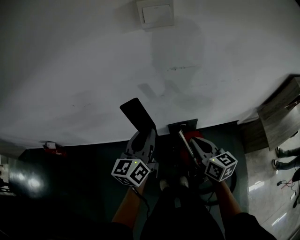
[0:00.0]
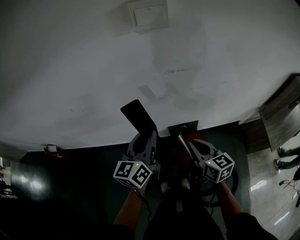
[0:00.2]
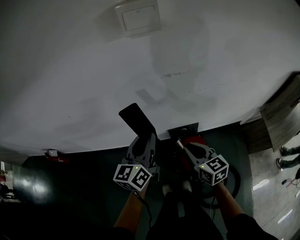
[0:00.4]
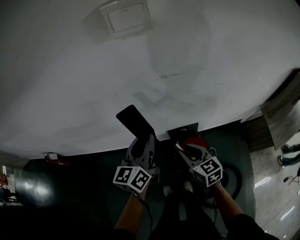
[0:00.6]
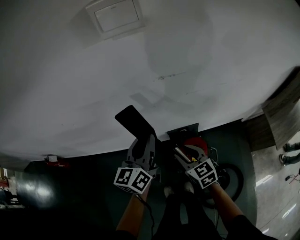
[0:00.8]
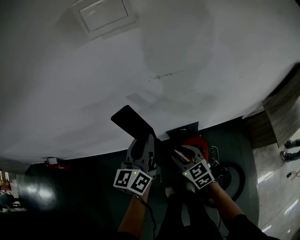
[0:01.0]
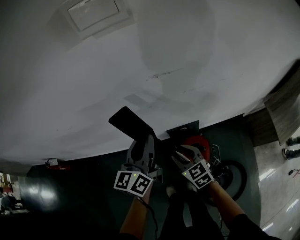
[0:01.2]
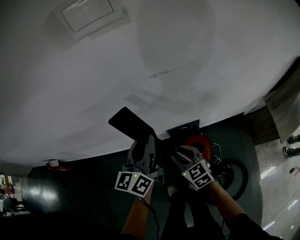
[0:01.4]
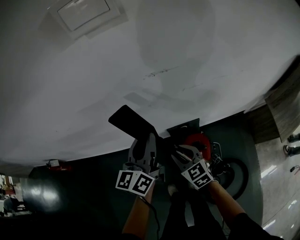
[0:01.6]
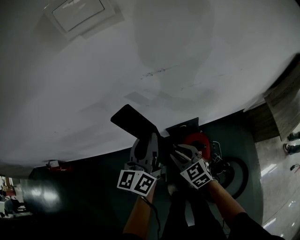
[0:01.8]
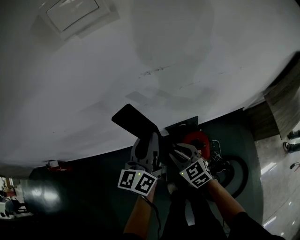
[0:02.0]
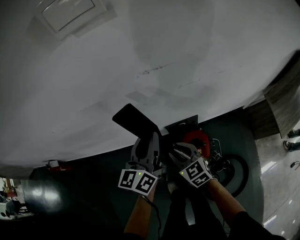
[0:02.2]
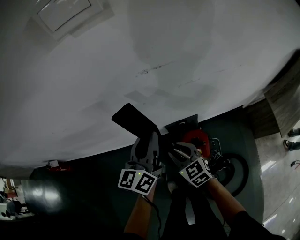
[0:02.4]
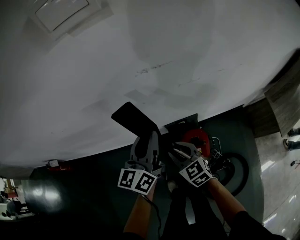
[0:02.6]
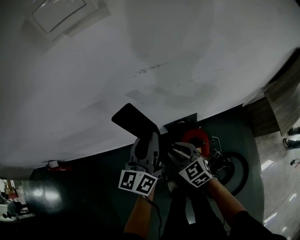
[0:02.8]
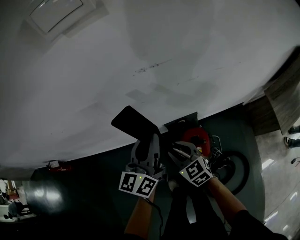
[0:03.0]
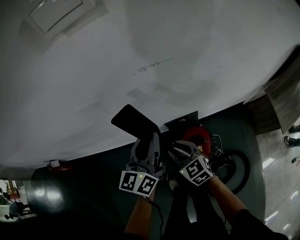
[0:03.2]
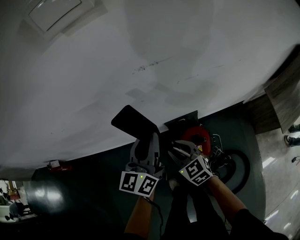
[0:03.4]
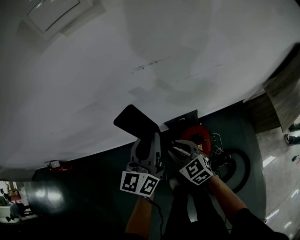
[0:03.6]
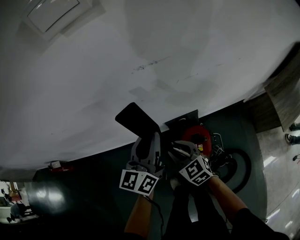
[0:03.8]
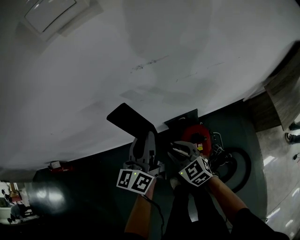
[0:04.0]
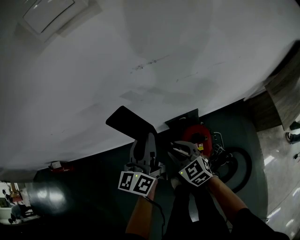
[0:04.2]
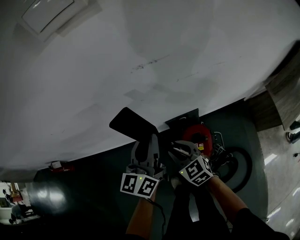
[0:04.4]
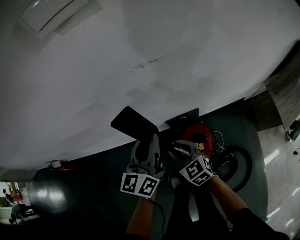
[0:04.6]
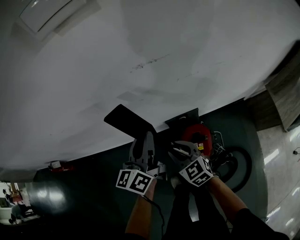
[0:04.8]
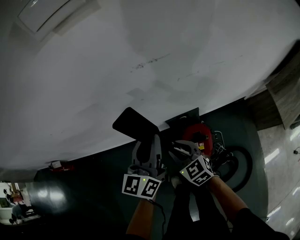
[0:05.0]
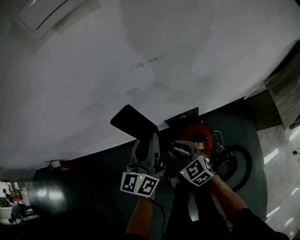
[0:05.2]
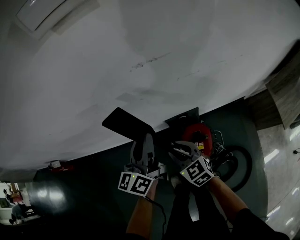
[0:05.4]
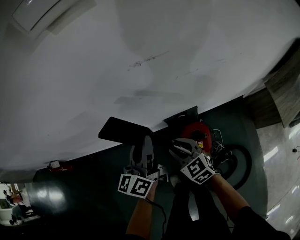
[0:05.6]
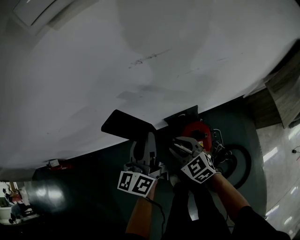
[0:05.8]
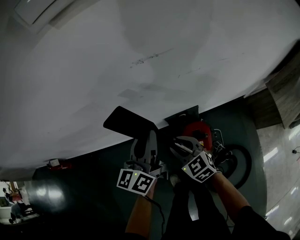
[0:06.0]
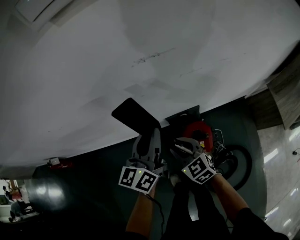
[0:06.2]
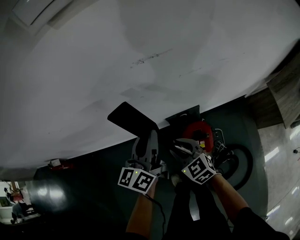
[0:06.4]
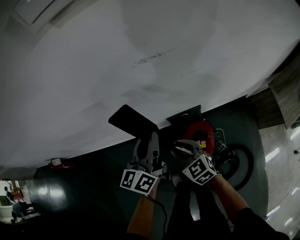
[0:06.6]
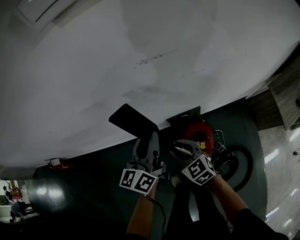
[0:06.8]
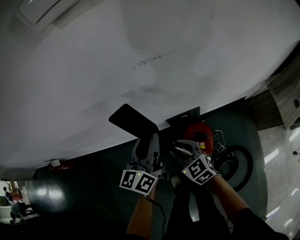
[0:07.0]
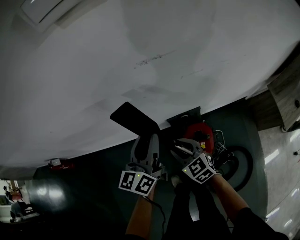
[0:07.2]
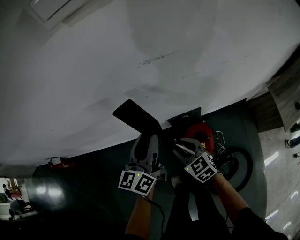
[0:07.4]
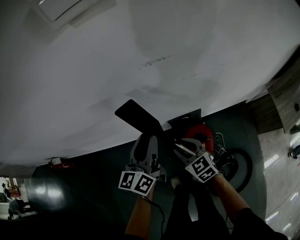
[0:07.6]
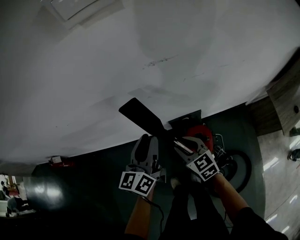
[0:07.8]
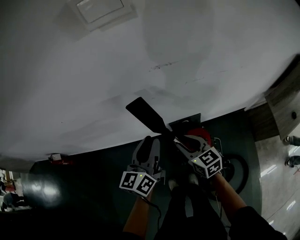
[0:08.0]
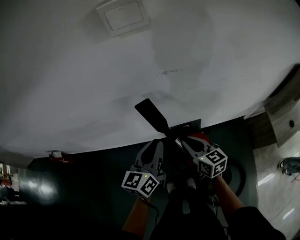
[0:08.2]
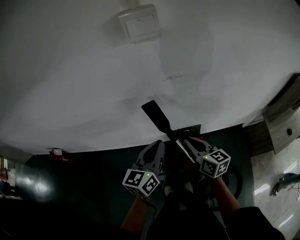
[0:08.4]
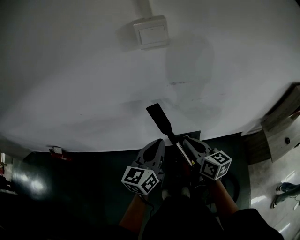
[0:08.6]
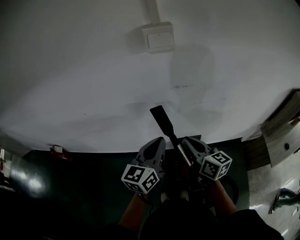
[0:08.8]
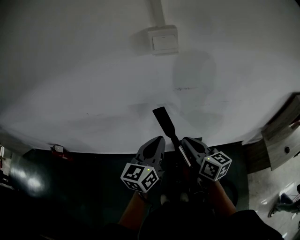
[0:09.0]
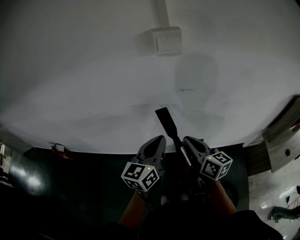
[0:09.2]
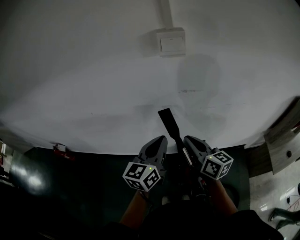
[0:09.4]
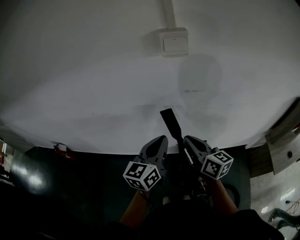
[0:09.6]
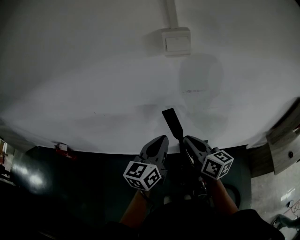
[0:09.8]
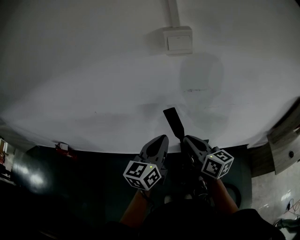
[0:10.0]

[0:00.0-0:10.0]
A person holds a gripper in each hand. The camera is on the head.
0:00.0 to 0:01.4: The right gripper heads downward, covering some 15 cm, turns by approximately 30 degrees, and opens. Meanwhile the left gripper goes approximately 10 cm forward, downward and to the right.
0:01.4 to 0:07.2: The grippers move only a little.
0:07.2 to 0:08.6: The right gripper shifts some 20 cm upward, changes its angle by some 40 degrees, and closes up. The left gripper moves upward and backward, about 15 cm, and closes its fingers.
0:08.6 to 0:10.0: The right gripper is displaced upward and to the left by approximately 5 cm; the left gripper changes place by about 5 cm.

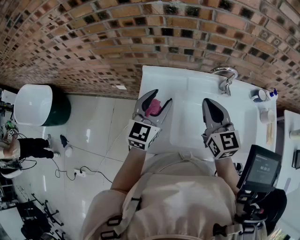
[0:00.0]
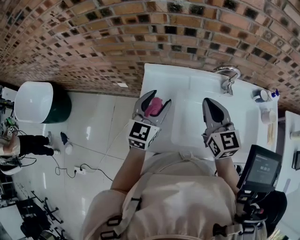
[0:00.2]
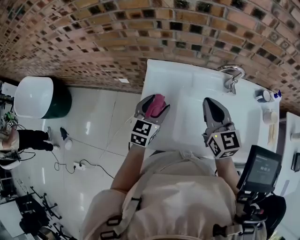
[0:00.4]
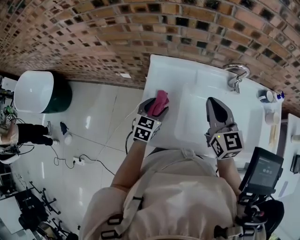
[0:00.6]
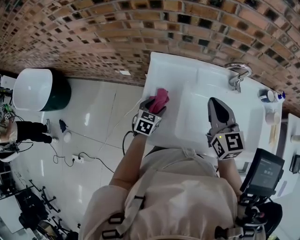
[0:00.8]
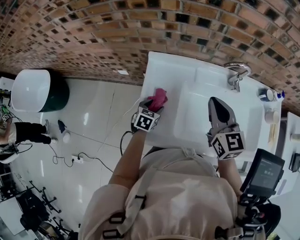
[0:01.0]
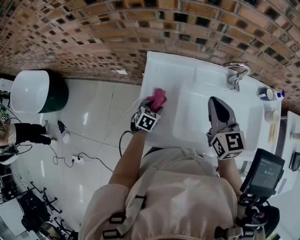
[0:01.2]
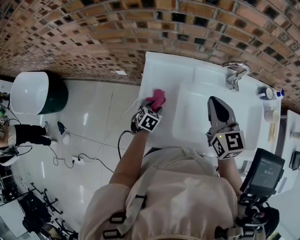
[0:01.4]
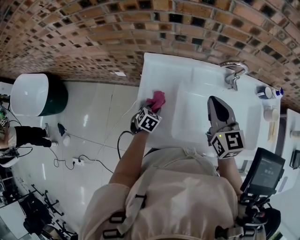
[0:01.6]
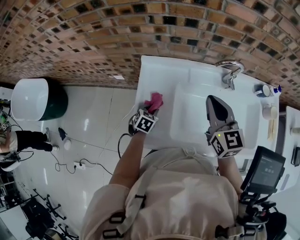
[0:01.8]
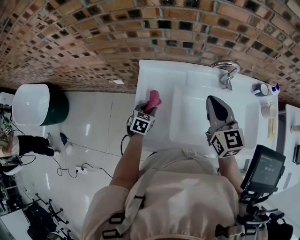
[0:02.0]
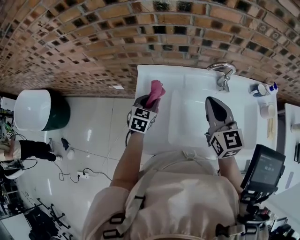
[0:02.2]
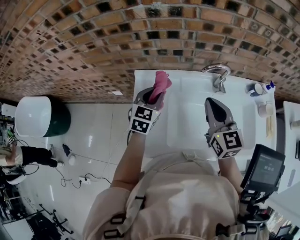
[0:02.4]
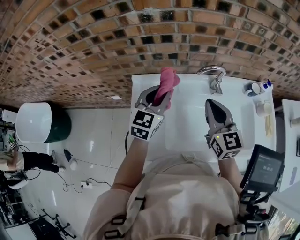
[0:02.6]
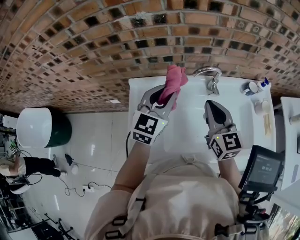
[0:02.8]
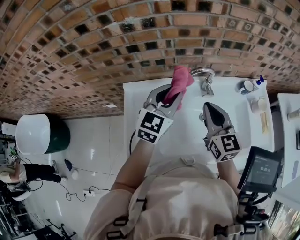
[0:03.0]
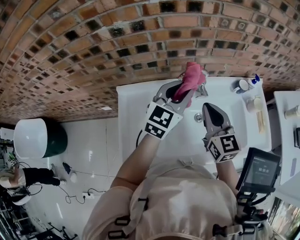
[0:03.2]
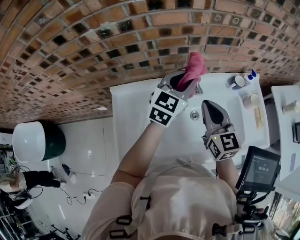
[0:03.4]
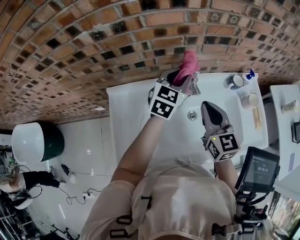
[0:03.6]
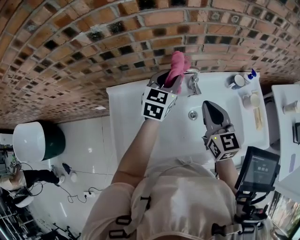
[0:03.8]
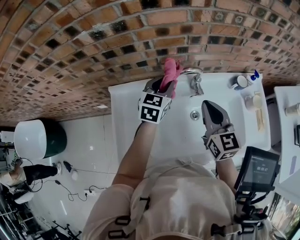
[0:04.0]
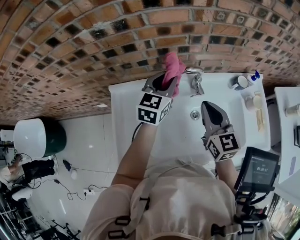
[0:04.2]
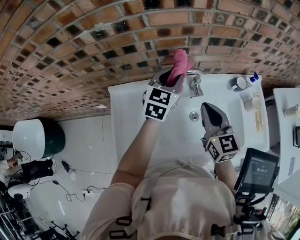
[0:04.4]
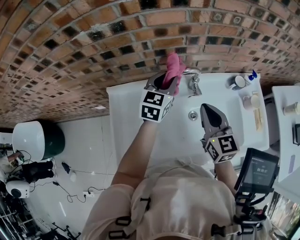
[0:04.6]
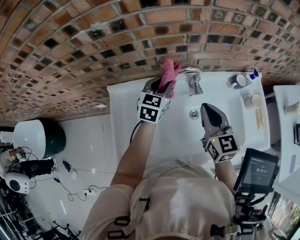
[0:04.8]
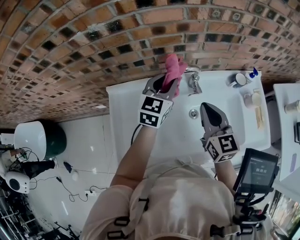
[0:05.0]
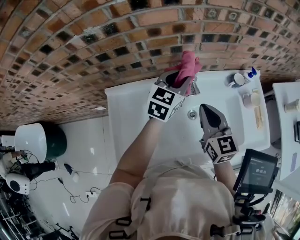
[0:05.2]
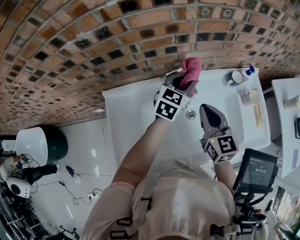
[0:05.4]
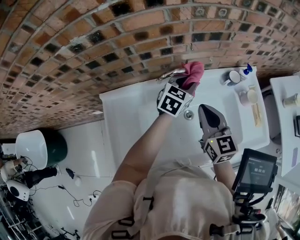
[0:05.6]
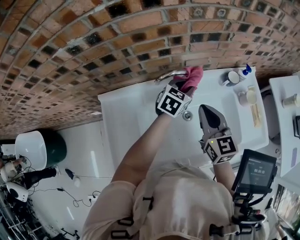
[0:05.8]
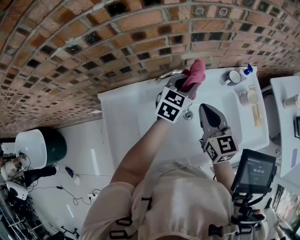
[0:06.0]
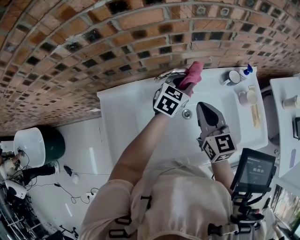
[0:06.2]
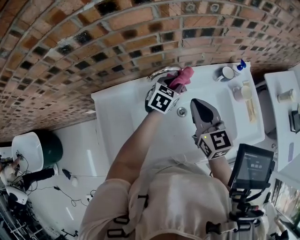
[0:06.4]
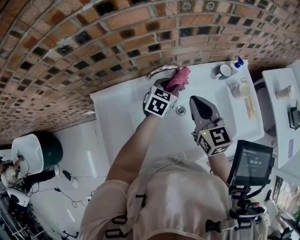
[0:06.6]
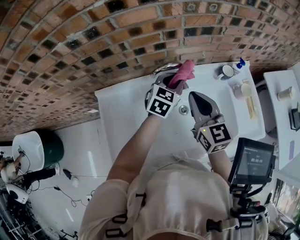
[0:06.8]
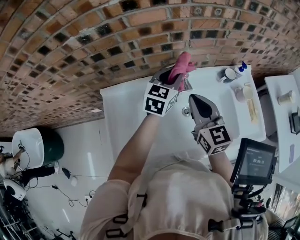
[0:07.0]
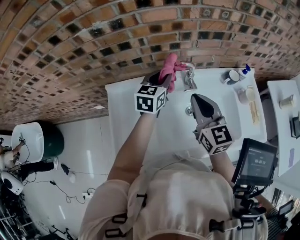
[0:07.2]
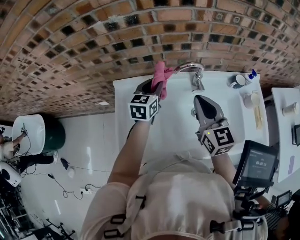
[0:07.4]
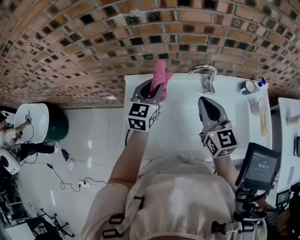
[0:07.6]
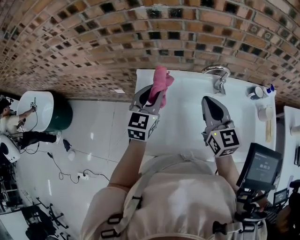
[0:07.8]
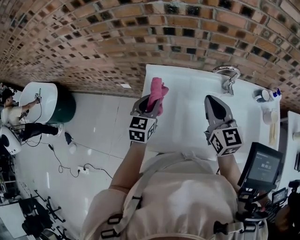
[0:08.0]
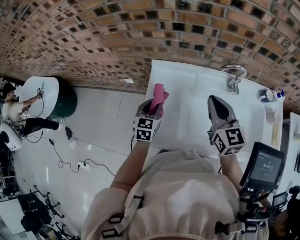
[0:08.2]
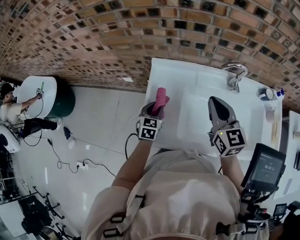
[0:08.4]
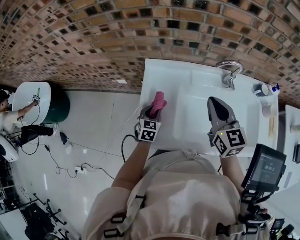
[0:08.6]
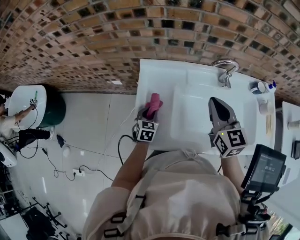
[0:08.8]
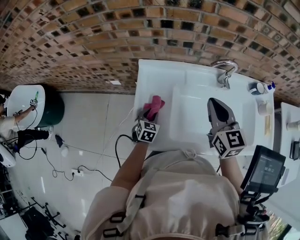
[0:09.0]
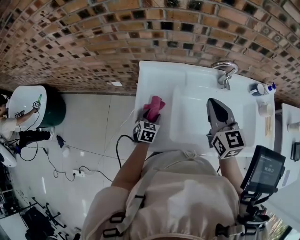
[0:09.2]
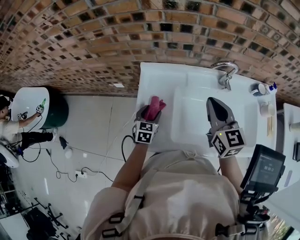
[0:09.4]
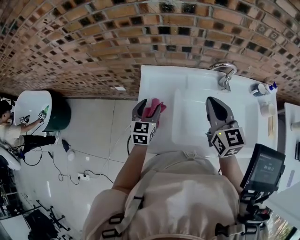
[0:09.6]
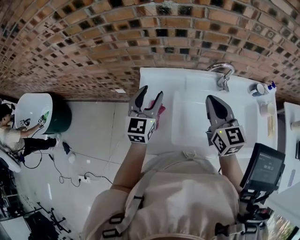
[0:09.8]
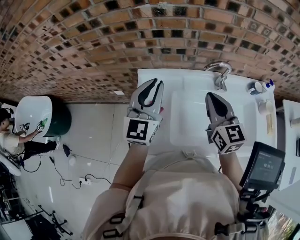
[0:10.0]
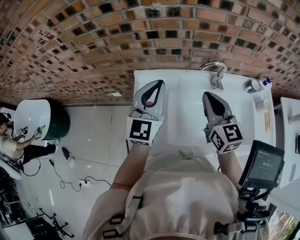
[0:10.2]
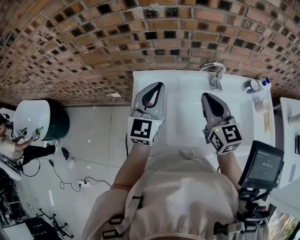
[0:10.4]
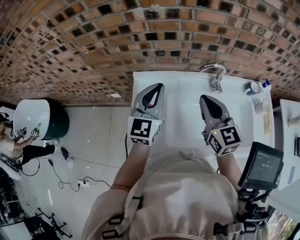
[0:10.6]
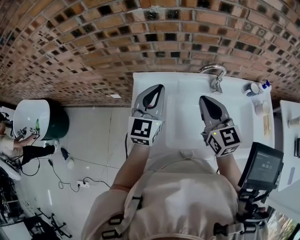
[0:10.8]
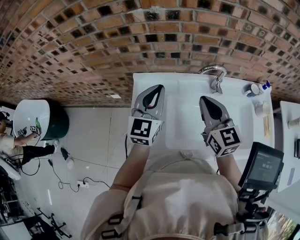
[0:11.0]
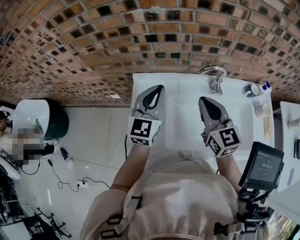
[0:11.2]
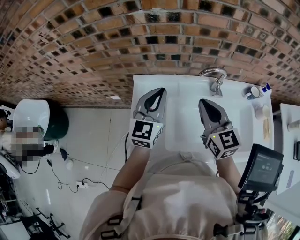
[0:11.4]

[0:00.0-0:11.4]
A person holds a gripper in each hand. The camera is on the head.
0:00.0 to 0:01.4: The left gripper moves downward, about 30 cm, and tilts its fingers roughly 50 degrees downward.
0:01.4 to 0:02.8: The left gripper shifts roughly 35 cm upward and to the right, and angles its fingers upward, by approximately 50 degrees. Meanwhile the right gripper moves to the right, roughly 10 cm.
0:02.8 to 0:04.2: The left gripper shifts some 15 cm forward, to the right and downward; the right gripper is displaced to the right by roughly 5 cm.
0:04.2 to 0:05.6: The left gripper travels to the right and downward by about 15 cm, and turns by about 20 degrees.
0:05.6 to 0:07.2: The left gripper goes some 15 cm to the left and upward, and changes its angle by about 20 degrees, while the right gripper heads upward, covering approximately 5 cm.
0:07.2 to 0:08.6: The right gripper heads to the left, covering some 15 cm. The left gripper travels to the left, downward and backward by approximately 40 cm, and turns by some 30 degrees.
0:08.6 to 0:10.0: The left gripper moves upward, about 30 cm, tips its fingers upward by some 40 degrees, and opens, then closes again.
0:10.0 to 0:11.4: The left gripper moves roughly 5 cm.

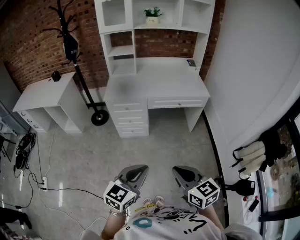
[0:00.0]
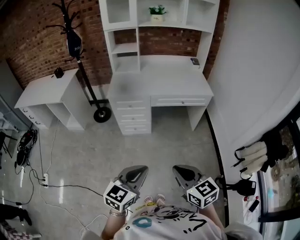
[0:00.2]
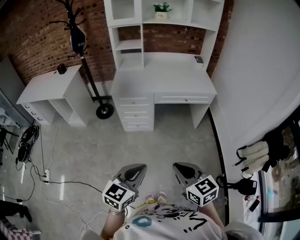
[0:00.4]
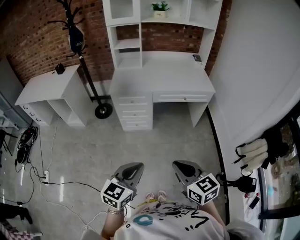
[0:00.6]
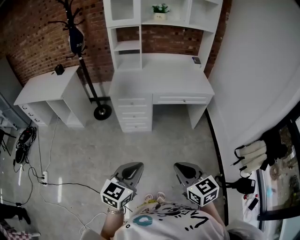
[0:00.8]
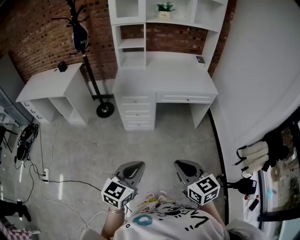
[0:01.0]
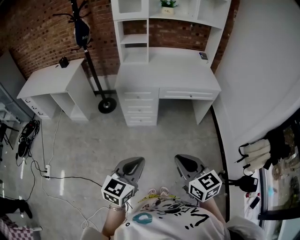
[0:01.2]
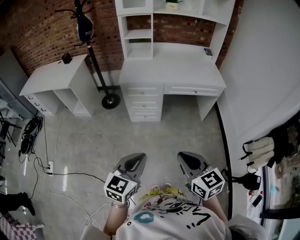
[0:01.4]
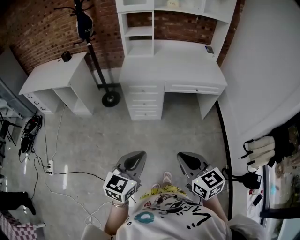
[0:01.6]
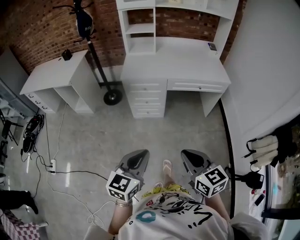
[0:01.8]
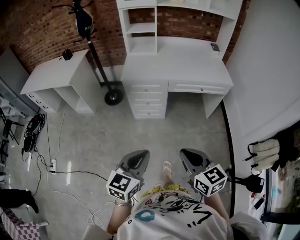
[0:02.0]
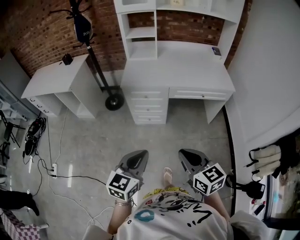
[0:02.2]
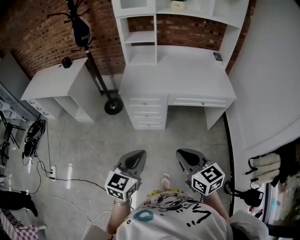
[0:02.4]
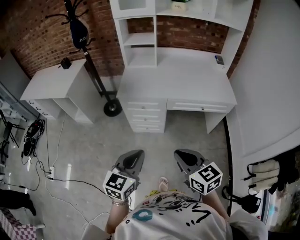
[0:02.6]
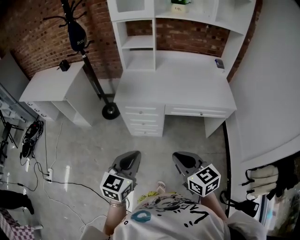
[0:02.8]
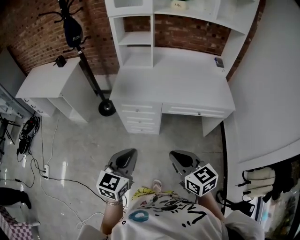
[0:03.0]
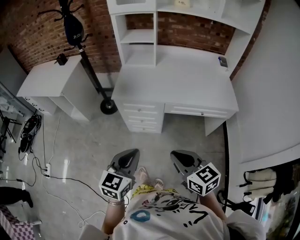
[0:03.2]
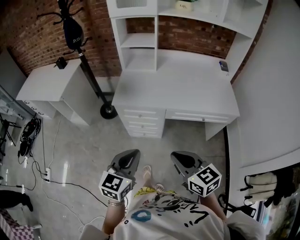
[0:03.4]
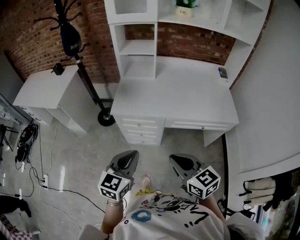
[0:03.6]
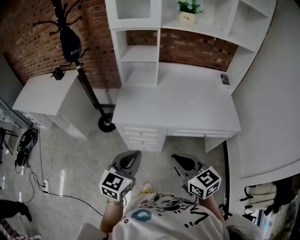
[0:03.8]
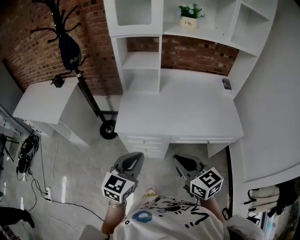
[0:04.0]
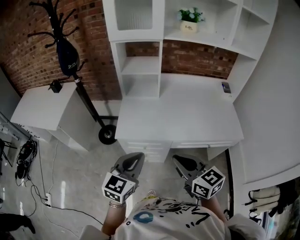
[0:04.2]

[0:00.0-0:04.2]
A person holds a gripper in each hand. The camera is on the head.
0:00.0 to 0:01.4: Both grippers move to the left, about 10 cm.
0:01.4 to 0:02.8: The grippers both shift forward by some 25 cm.
0:02.8 to 0:04.2: The two grippers go approximately 25 cm forward.
